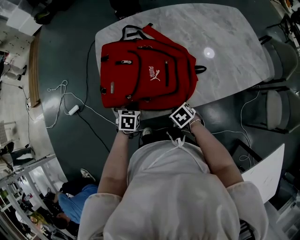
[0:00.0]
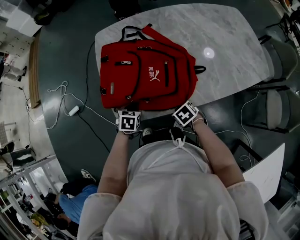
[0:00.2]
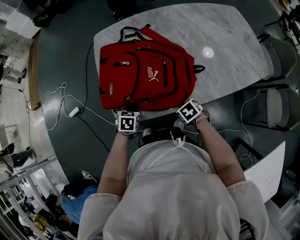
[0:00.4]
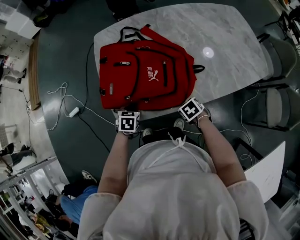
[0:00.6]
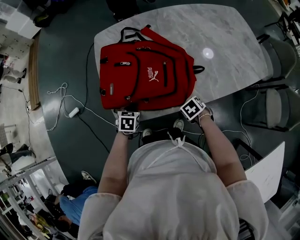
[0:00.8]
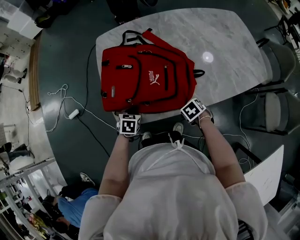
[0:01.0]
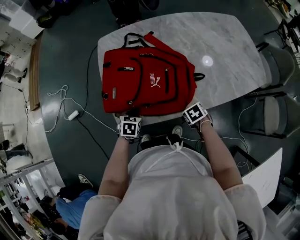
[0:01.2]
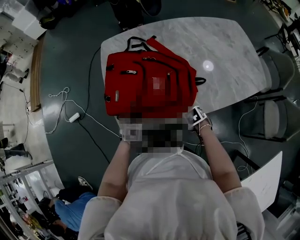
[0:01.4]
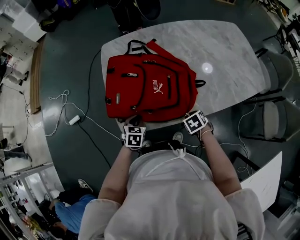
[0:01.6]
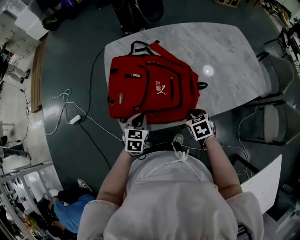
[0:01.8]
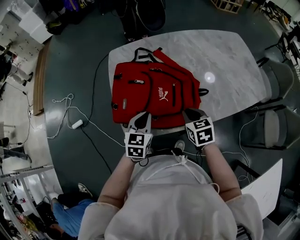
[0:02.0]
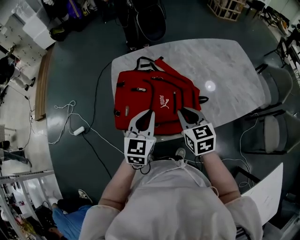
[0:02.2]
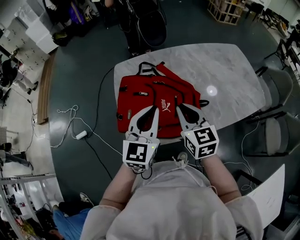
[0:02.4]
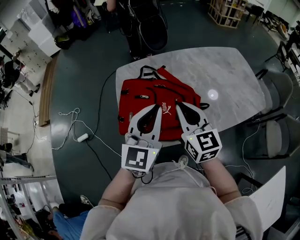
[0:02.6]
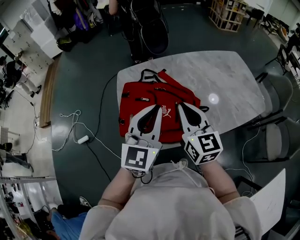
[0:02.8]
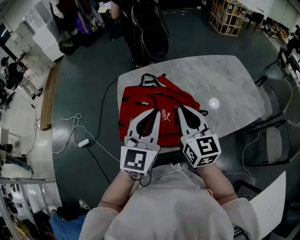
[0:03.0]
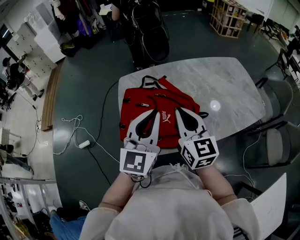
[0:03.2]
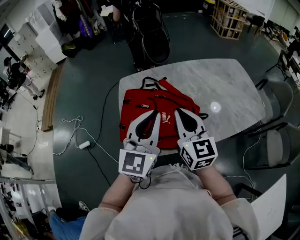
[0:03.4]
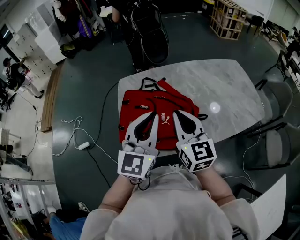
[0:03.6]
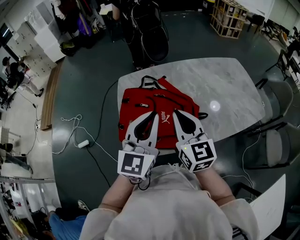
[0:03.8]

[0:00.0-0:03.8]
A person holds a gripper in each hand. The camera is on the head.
0:00.0 to 0:01.2: The right gripper moves about 10 cm.
0:01.2 to 0:02.6: Both grippers move upward, approximately 40 cm. The right gripper tilts its fingers approximately 70 degrees upward; the left gripper tilts its fingers about 60 degrees upward.
0:02.6 to 0:03.8: The grippers stay close to where they were, moving slightly.

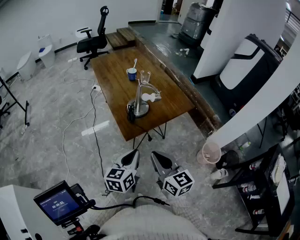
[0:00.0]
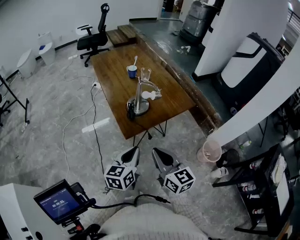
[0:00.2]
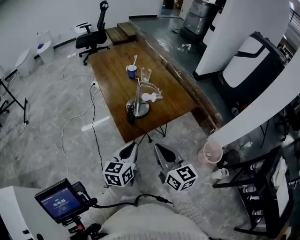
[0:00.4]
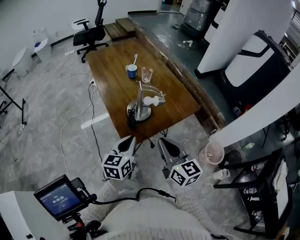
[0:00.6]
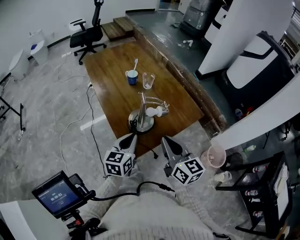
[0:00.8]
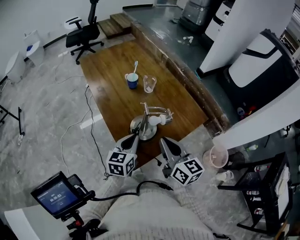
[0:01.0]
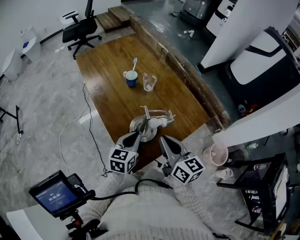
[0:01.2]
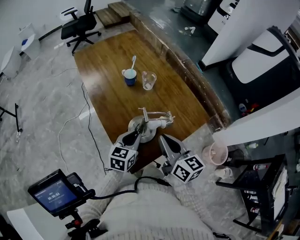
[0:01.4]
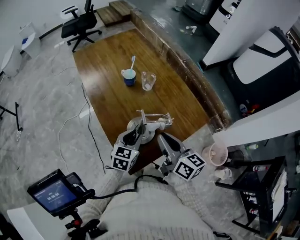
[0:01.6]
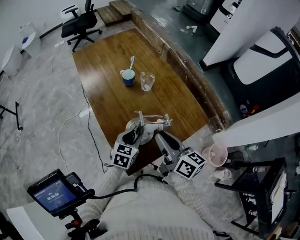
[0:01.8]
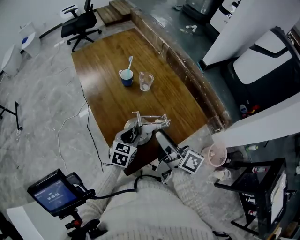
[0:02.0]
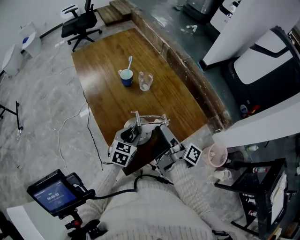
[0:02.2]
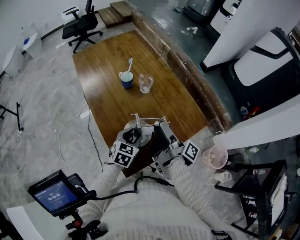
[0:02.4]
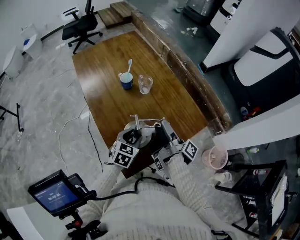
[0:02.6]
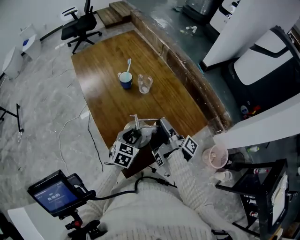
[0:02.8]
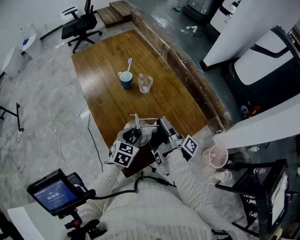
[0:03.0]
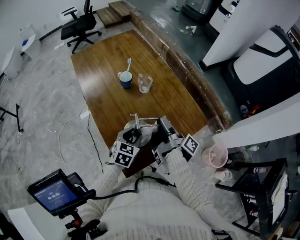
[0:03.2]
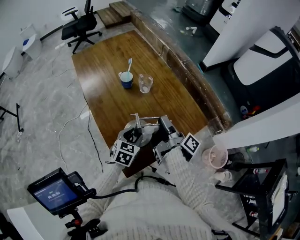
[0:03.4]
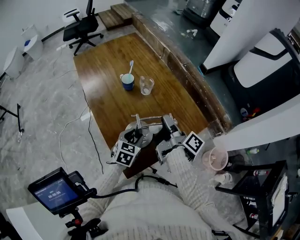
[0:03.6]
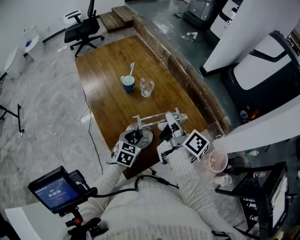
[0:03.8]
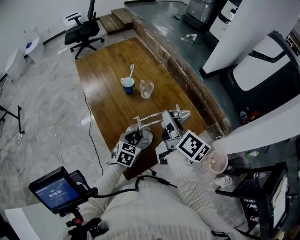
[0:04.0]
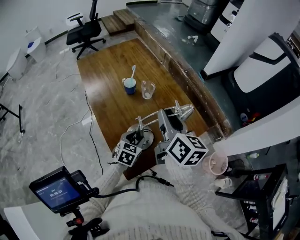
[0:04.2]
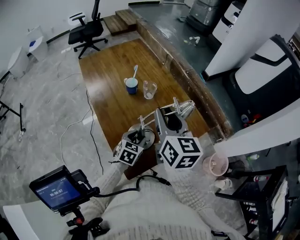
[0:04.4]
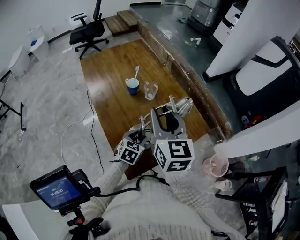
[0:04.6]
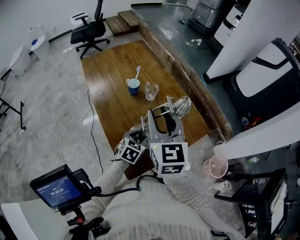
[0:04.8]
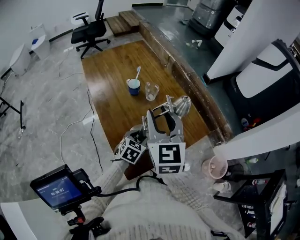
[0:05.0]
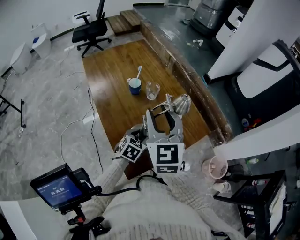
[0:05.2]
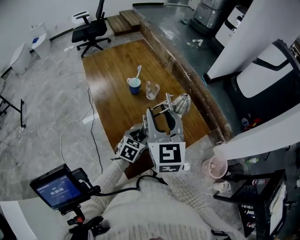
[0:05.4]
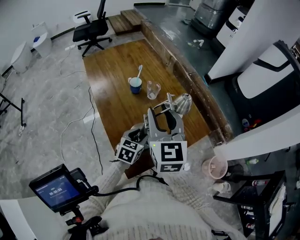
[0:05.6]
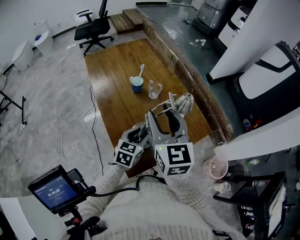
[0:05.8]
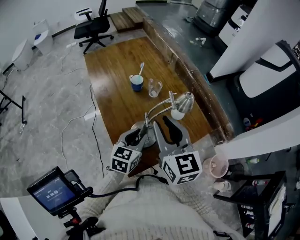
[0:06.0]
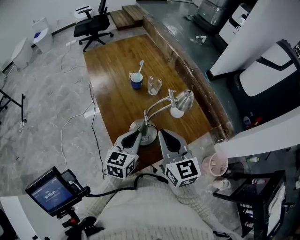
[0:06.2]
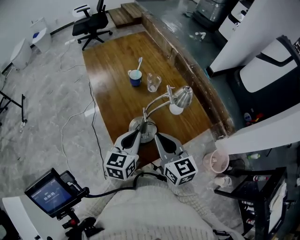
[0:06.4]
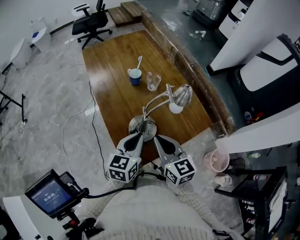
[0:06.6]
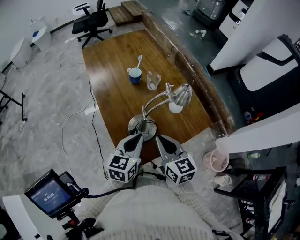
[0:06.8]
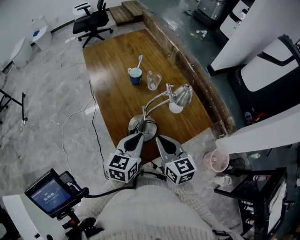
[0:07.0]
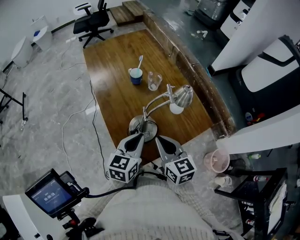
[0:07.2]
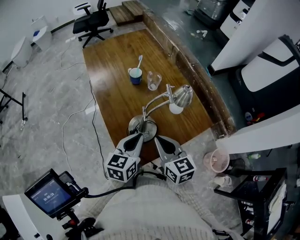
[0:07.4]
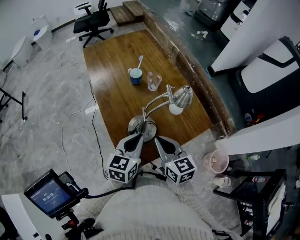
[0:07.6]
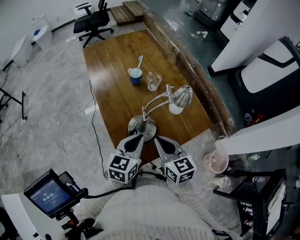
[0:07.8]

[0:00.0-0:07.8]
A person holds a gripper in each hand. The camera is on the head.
0:00.0 to 0:01.6: Both grippers move forward, about 35 cm. The right gripper swivels about 20 degrees; the left gripper swivels some 20 degrees, and opens.
0:01.6 to 0:03.2: The right gripper travels forward by some 5 cm, rotates around the line of its fingers by approximately 70 degrees, clockwise from behind, and opens, then closes again.
0:03.2 to 0:04.6: The right gripper goes some 15 cm upward, and rolls counterclockwise, seen from behind, by roughly 100 degrees.
0:04.6 to 0:06.2: The left gripper shifts about 10 cm upward, changes its angle by roughly 30 degrees, and closes, while the right gripper heads backward and downward, covering some 10 cm, and closes.
0:06.2 to 0:07.8: The right gripper is displaced downward by roughly 10 cm.

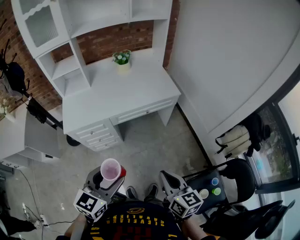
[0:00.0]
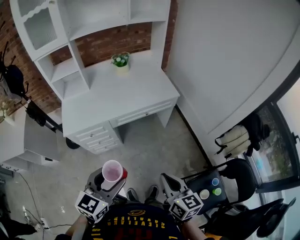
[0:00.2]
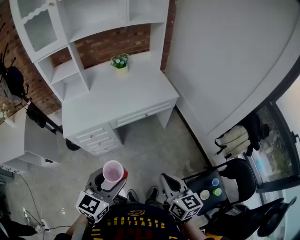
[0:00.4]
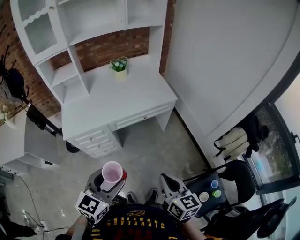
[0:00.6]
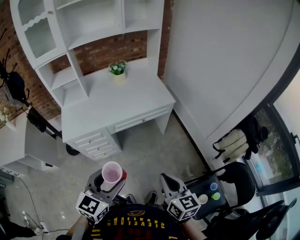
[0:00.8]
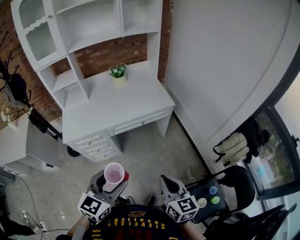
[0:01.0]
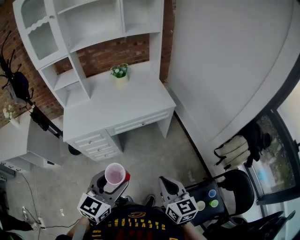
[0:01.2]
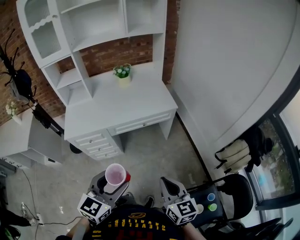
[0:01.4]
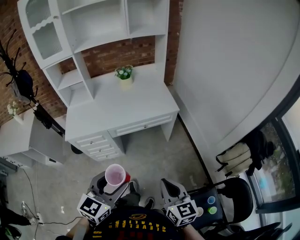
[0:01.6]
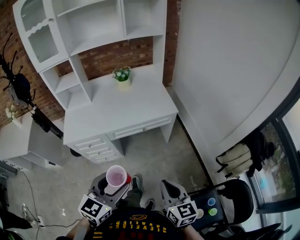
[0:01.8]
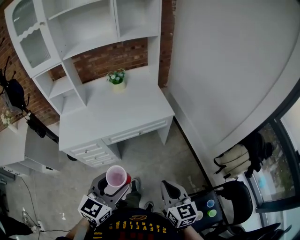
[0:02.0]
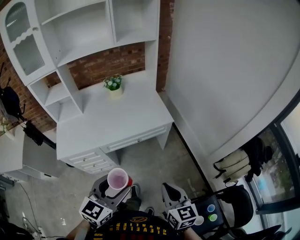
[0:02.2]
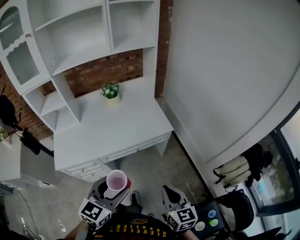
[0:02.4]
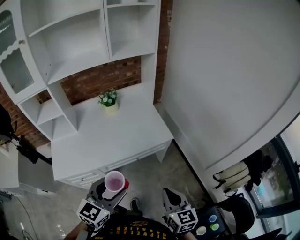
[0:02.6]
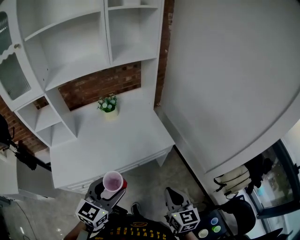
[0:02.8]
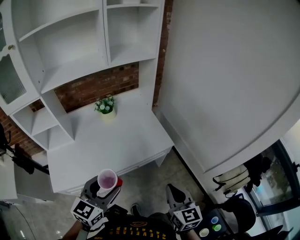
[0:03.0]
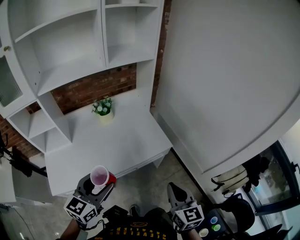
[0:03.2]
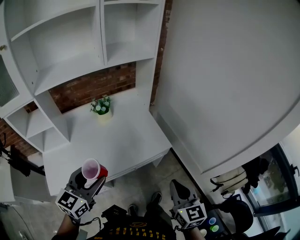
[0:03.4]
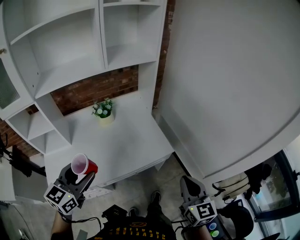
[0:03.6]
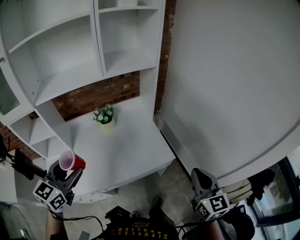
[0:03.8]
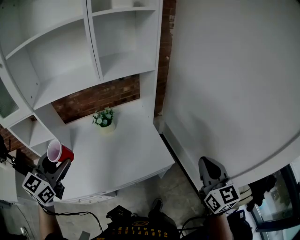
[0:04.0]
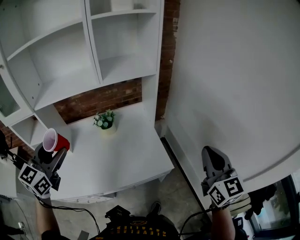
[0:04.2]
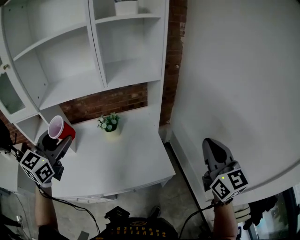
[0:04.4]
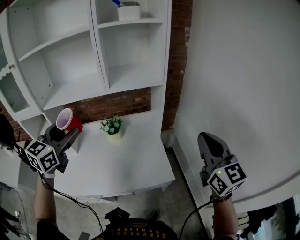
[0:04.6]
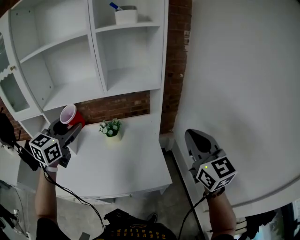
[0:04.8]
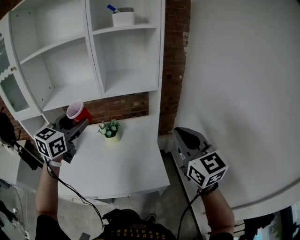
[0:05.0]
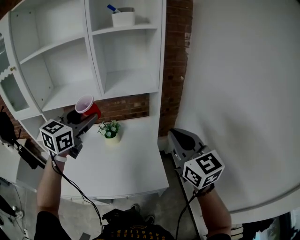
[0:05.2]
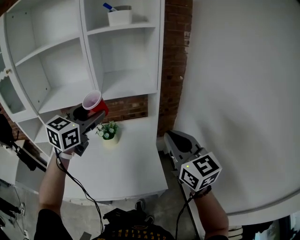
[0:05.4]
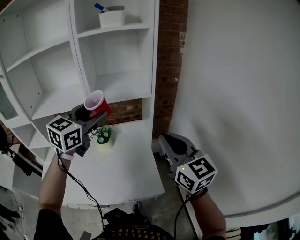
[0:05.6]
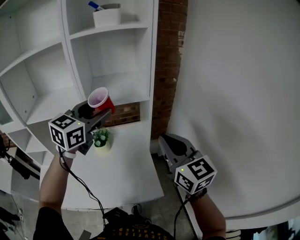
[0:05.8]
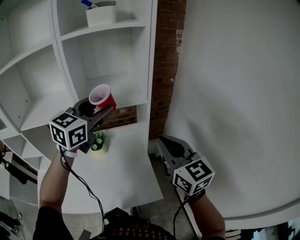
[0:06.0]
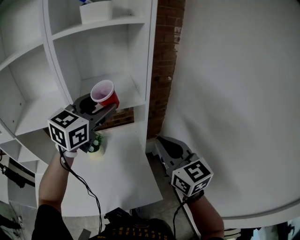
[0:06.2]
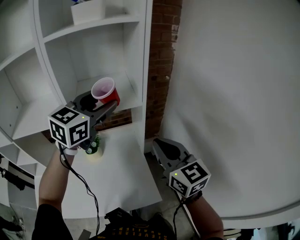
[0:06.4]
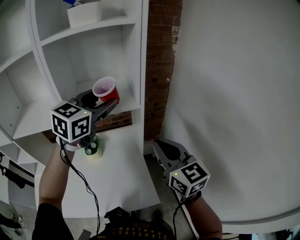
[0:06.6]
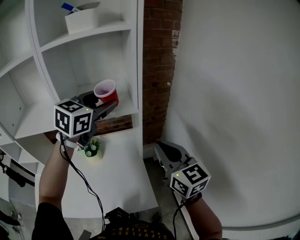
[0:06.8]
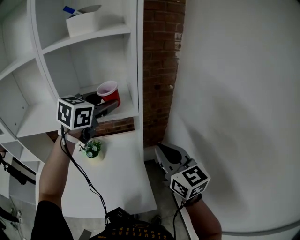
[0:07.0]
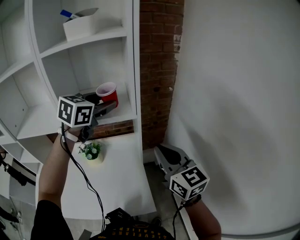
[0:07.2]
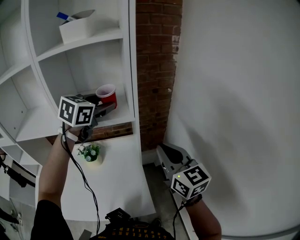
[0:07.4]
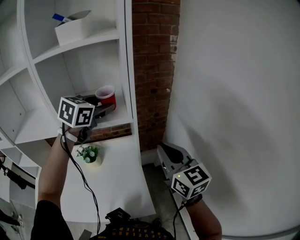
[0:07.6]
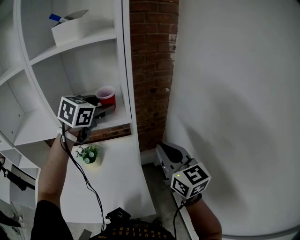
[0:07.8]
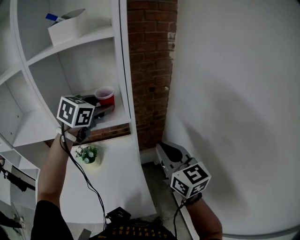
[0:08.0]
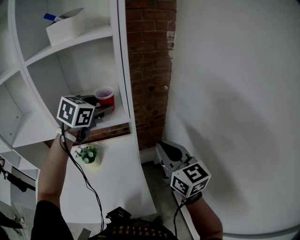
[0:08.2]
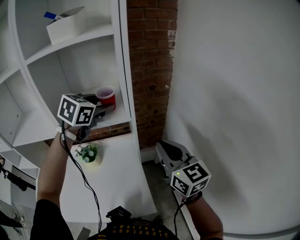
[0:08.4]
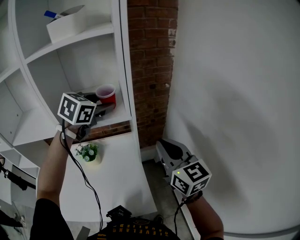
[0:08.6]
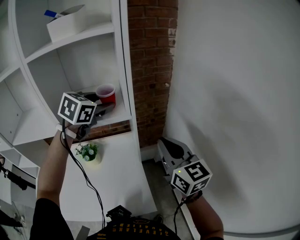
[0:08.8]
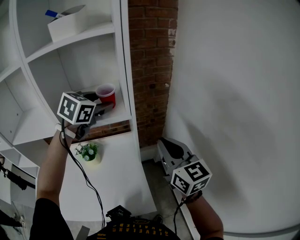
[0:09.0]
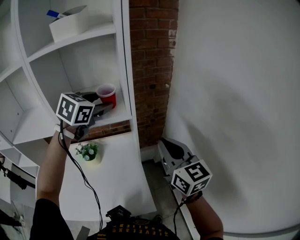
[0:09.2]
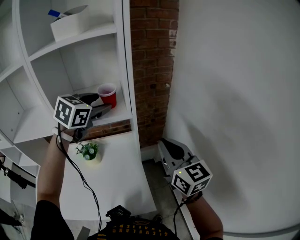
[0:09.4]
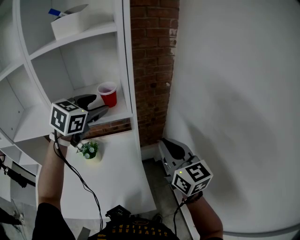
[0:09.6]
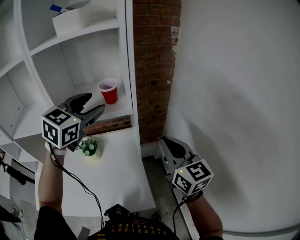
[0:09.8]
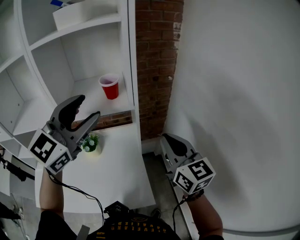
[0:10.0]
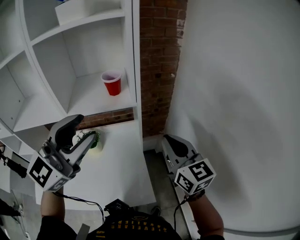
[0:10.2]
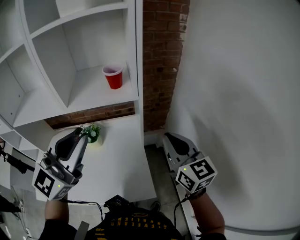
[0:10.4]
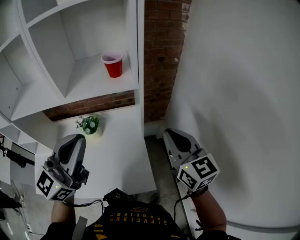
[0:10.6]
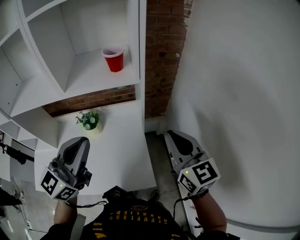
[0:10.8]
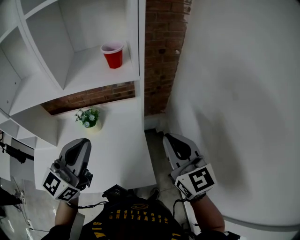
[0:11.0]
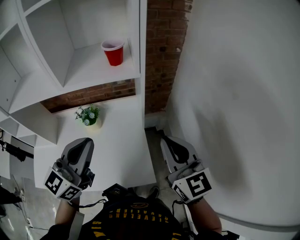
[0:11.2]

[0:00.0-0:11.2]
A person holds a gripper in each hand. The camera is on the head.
0:00.0 to 0:01.6: Both grippers move to the right, roughly 10 cm.
0:01.6 to 0:03.2: The left gripper goes roughly 35 cm forward and to the left. The right gripper is displaced forward by roughly 30 cm.
0:03.2 to 0:04.8: The two grippers go approximately 35 cm forward and upward. The left gripper swivels approximately 20 degrees; the right gripper rotates roughly 30 degrees.
0:04.8 to 0:06.4: The right gripper goes some 15 cm forward, while the left gripper heads forward and to the right, covering some 30 cm.
0:06.4 to 0:08.0: The right gripper is displaced to the right and forward by about 10 cm. The left gripper heads forward, covering roughly 10 cm, and changes its angle by some 20 degrees.
0:08.0 to 0:09.6: The grippers move only a little.
0:09.6 to 0:11.2: The right gripper shifts about 10 cm backward, while the left gripper shifts some 25 cm backward, tips its fingers upward by some 30 degrees, and closes up.

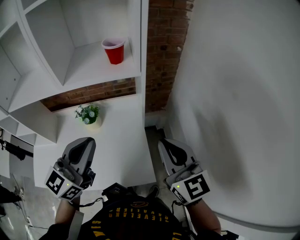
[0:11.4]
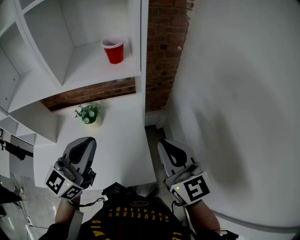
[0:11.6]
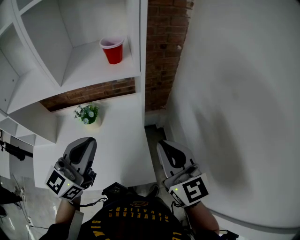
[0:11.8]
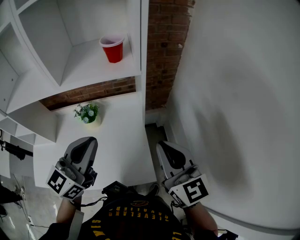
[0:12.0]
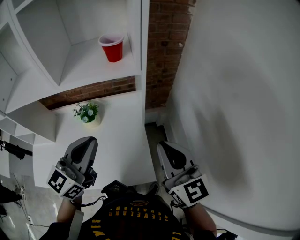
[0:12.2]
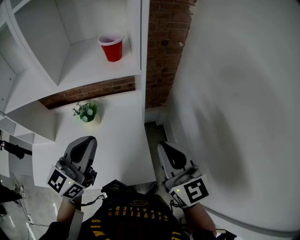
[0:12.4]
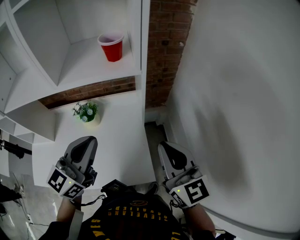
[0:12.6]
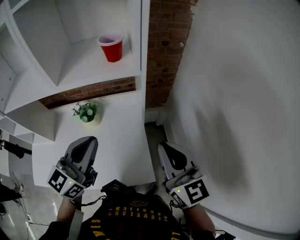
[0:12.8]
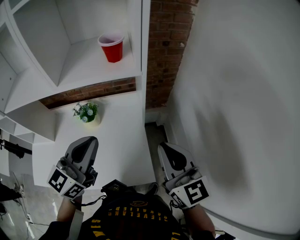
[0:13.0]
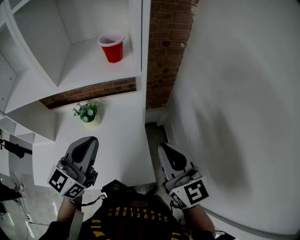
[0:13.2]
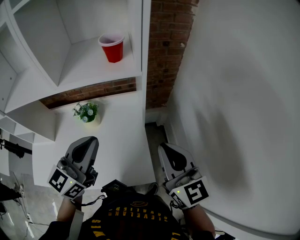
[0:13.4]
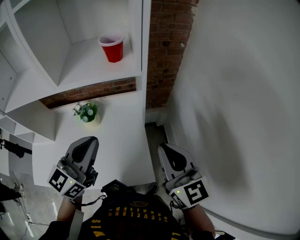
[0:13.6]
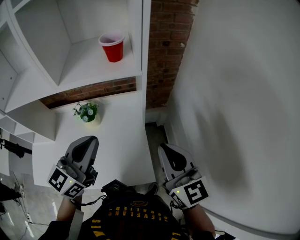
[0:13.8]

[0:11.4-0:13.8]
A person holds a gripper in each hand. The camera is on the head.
0:11.4 to 0:12.6: The grippers move only a little.
0:12.6 to 0:13.8: Both grippers stay put.
